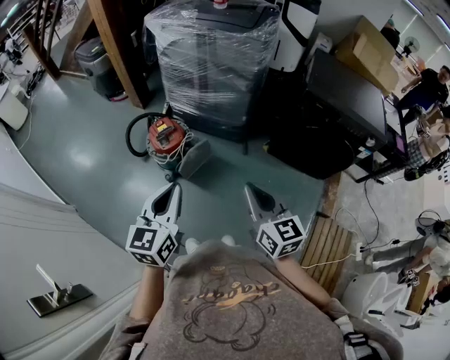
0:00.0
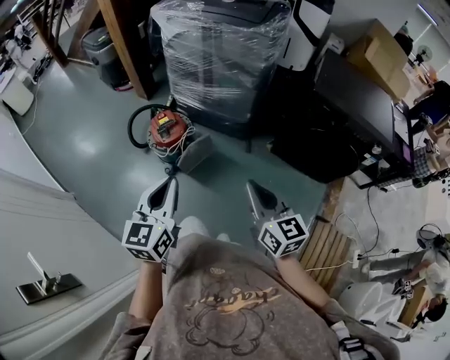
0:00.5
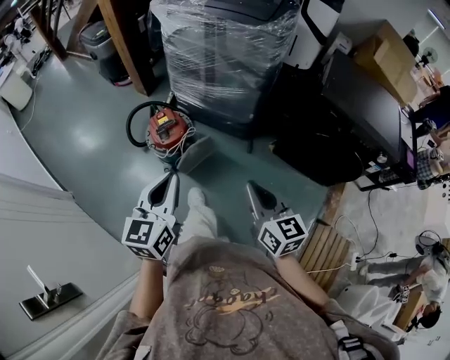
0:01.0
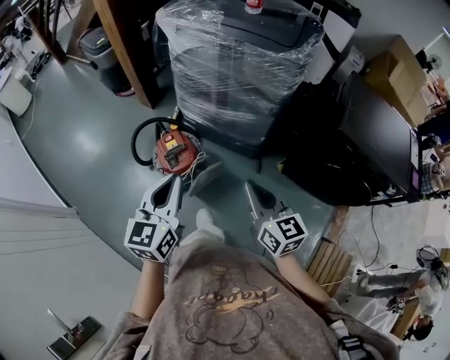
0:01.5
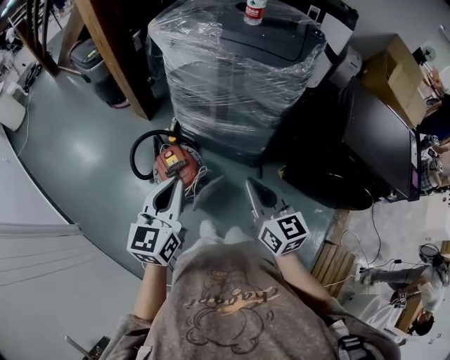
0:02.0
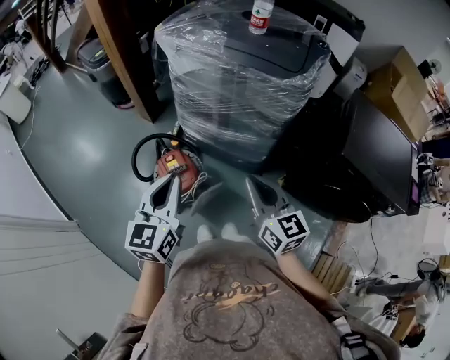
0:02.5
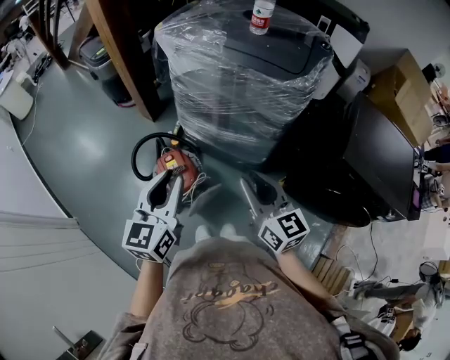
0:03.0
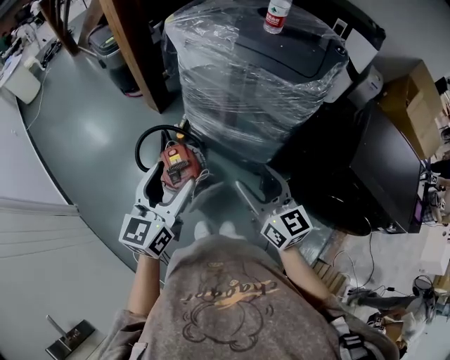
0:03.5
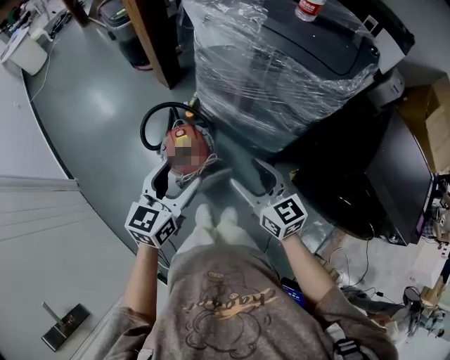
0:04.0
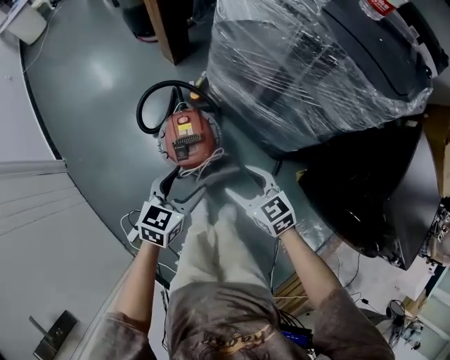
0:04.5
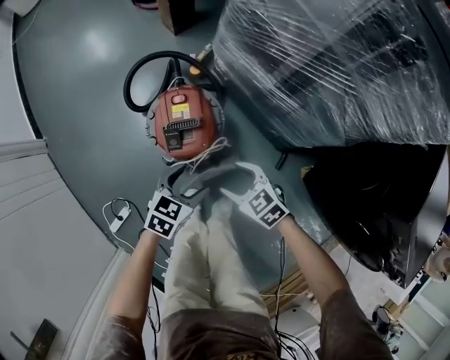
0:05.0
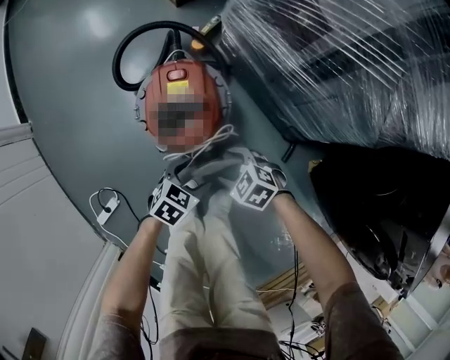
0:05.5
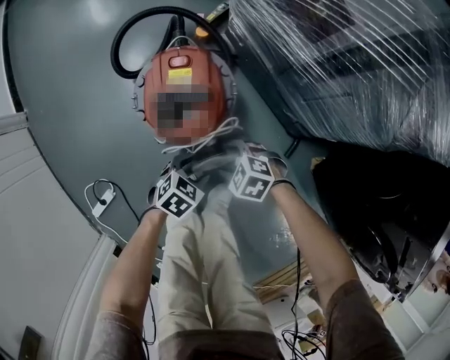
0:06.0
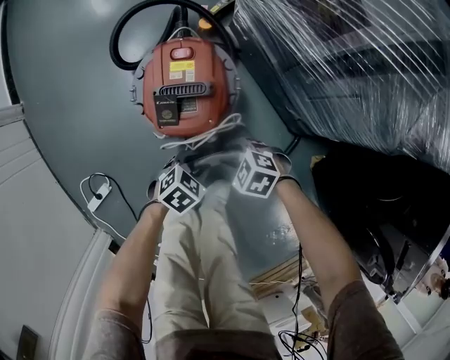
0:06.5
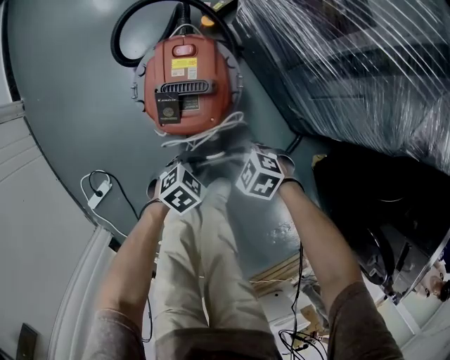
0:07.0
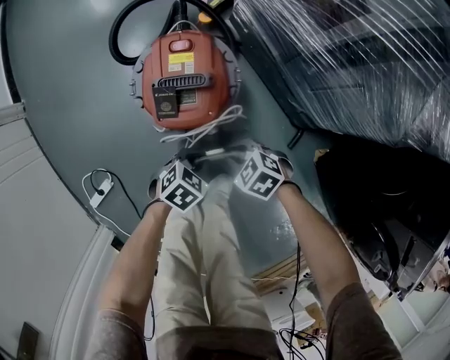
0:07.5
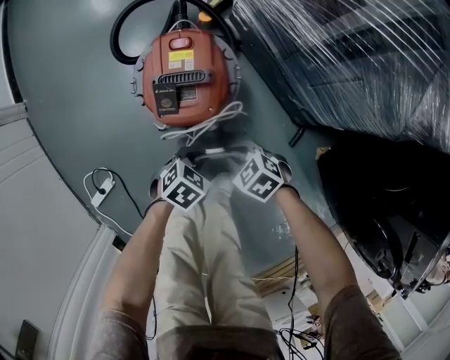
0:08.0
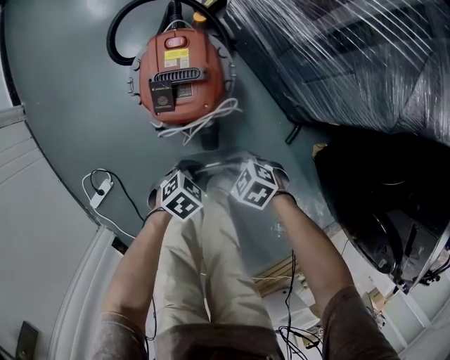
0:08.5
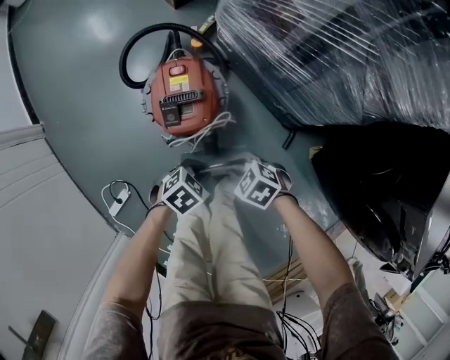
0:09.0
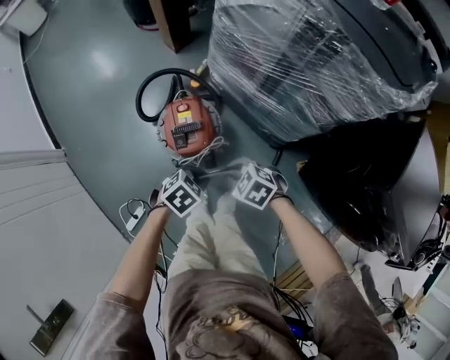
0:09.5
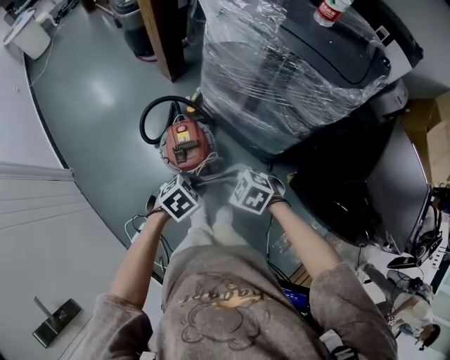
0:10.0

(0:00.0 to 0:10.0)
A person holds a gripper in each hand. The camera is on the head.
0:00.0 - 0:02.0: Both grippers move forward, about 30 cm.
0:02.0 - 0:04.0: The right gripper goes about 10 cm forward and downward, changes its angle by about 20 degrees, and opens, while the left gripper is displaced downward by some 5 cm, and opens up.
0:04.0 - 0:06.0: The two grippers go roughly 60 cm downward. The left gripper angles its fingers downward, by roughly 40 degrees; the right gripper tips its fingers downward by roughly 50 degrees.
0:06.0 - 0:08.0: The right gripper closes its fingers. Meanwhile the left gripper closes.
0:08.0 - 0:10.0: Both grippers move upward, roughly 40 cm.

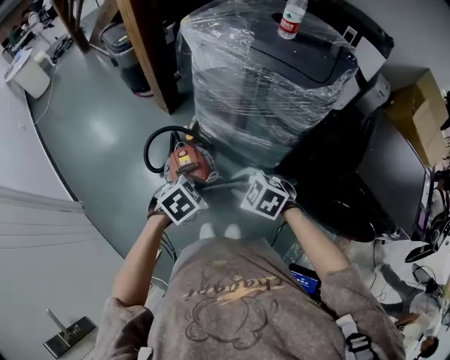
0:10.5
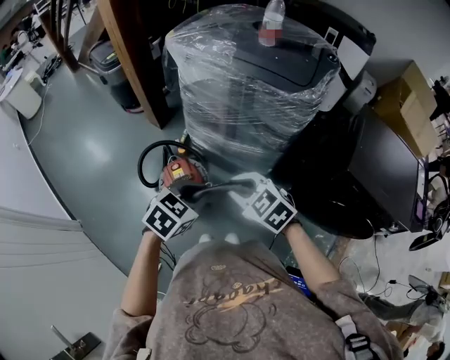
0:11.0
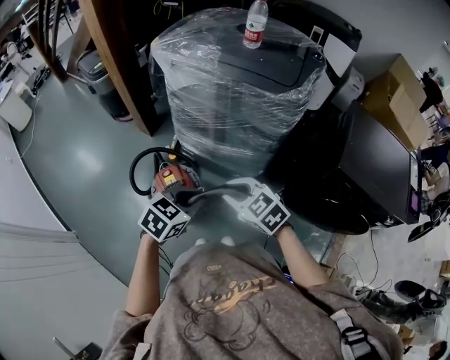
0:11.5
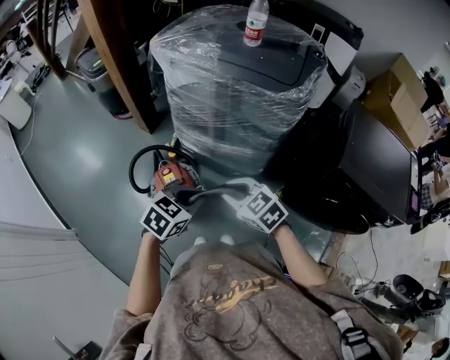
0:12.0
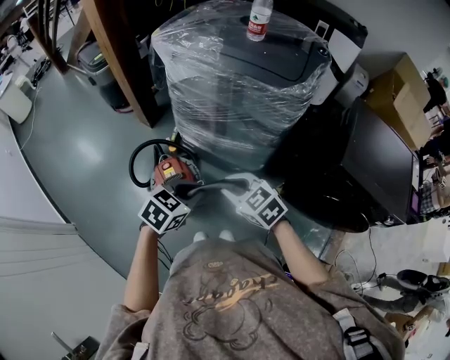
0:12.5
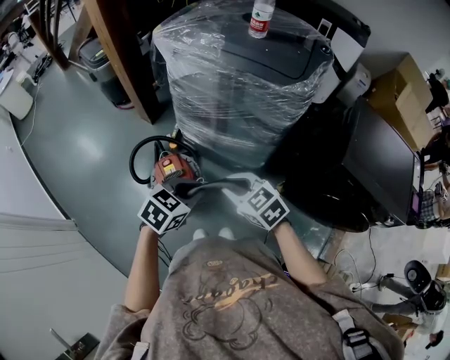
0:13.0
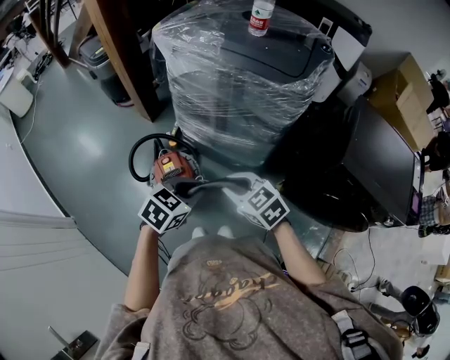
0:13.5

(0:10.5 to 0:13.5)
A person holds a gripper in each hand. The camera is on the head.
0:10.5 - 0:12.0: The right gripper turns by approximately 30 degrees.
0:12.0 - 0:13.5: Both grippers stay about where they are.

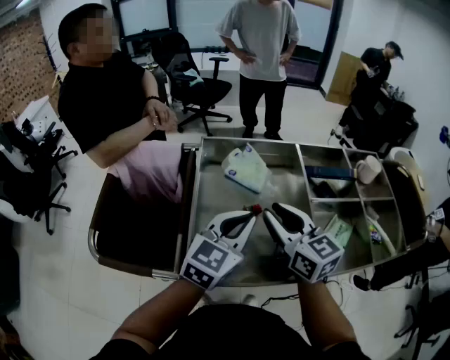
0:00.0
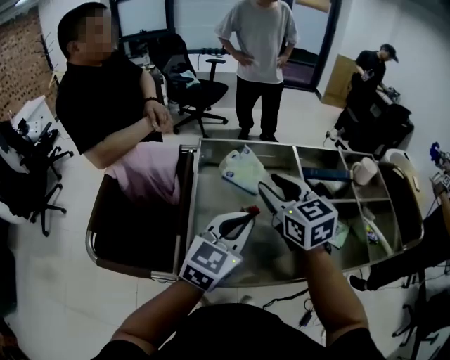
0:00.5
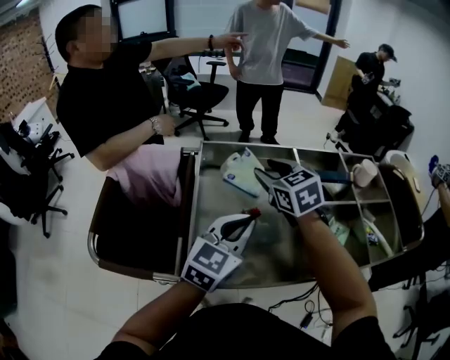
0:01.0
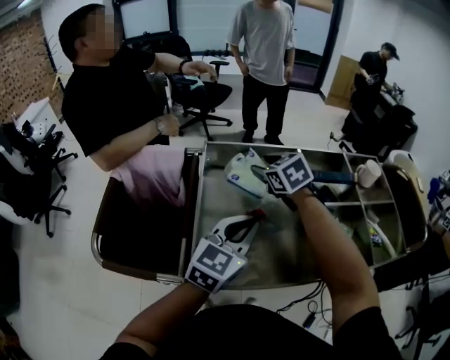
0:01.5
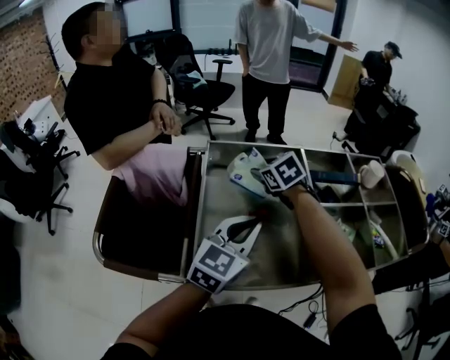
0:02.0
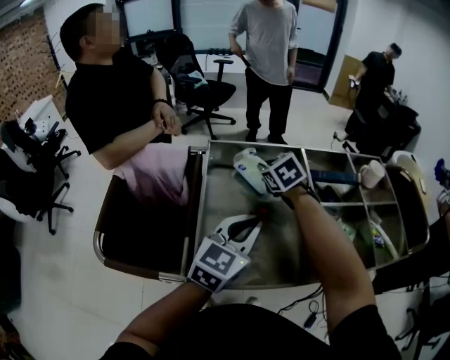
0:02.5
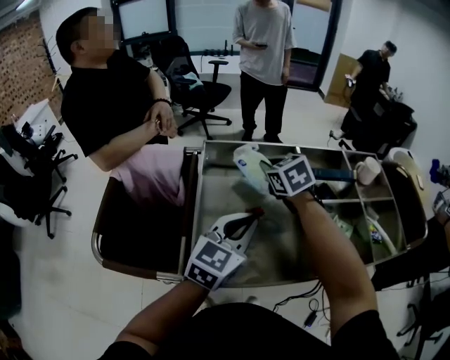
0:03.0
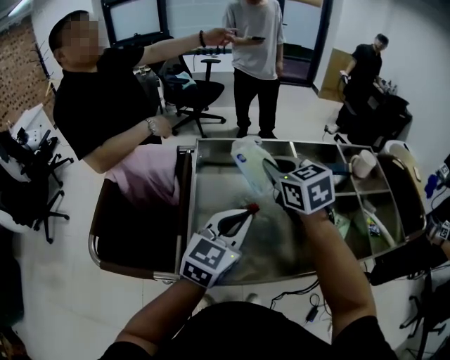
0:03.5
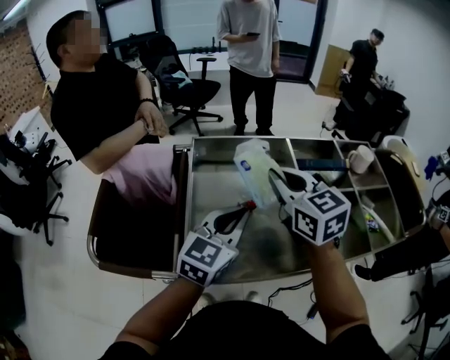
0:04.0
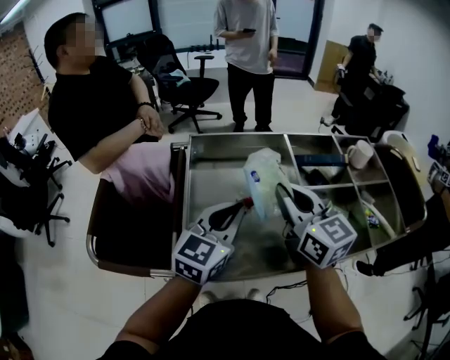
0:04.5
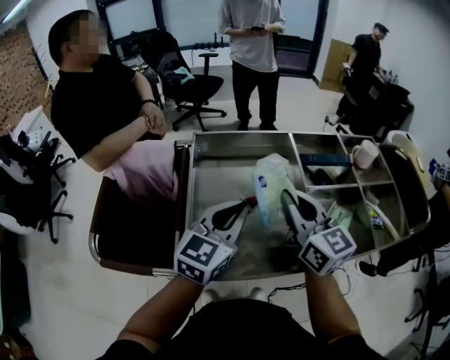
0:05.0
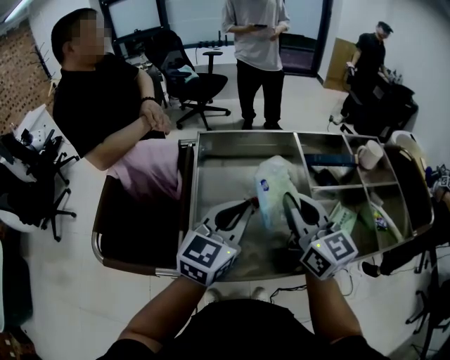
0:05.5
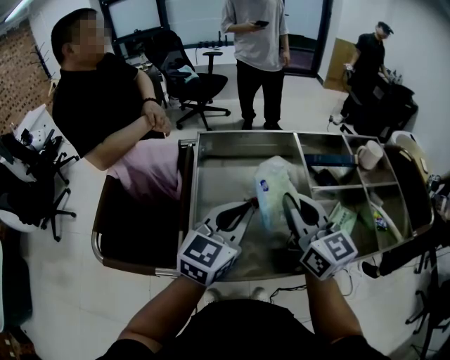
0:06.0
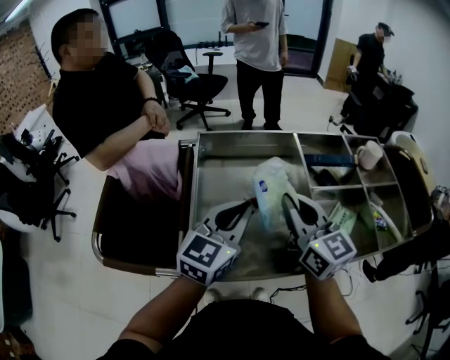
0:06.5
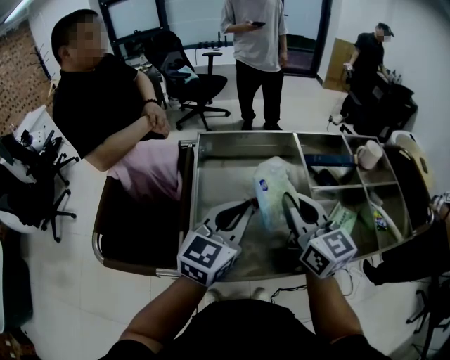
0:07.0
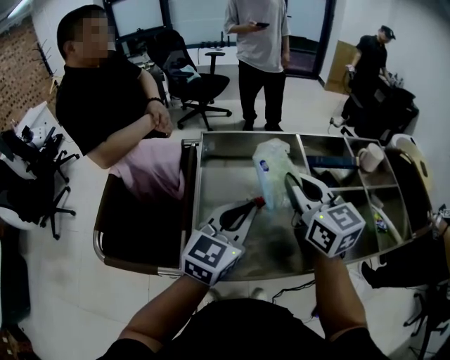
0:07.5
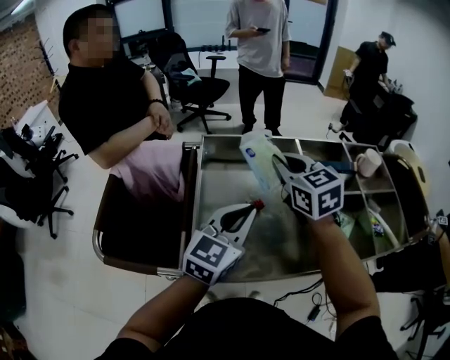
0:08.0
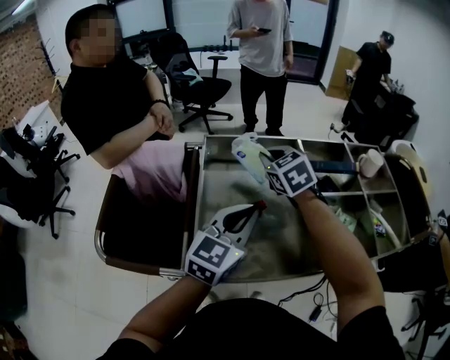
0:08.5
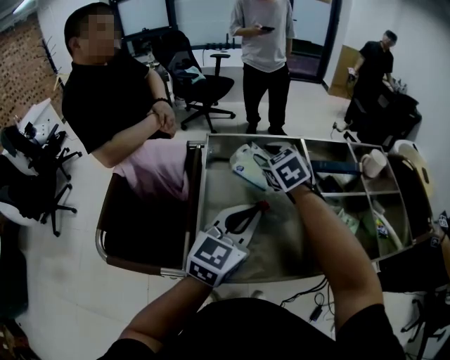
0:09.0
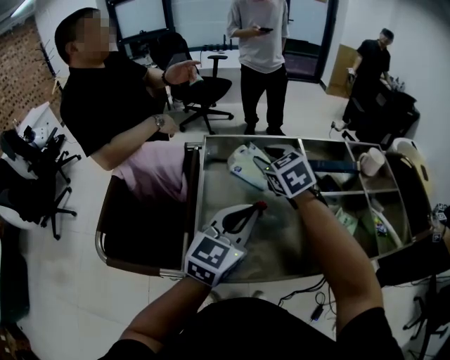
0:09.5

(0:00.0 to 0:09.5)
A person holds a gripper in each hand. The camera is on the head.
0:00.0 - 0:02.0: The right gripper goes approximately 20 cm forward, tilts its fingers about 30 degrees downward, and opens.
0:02.0 - 0:04.0: The right gripper goes some 20 cm backward, upward and to the right, rotates about 30 degrees, and closes its fingers.
0:04.0 - 0:05.5: The right gripper heads backward, covering approximately 5 cm.
0:05.5 - 0:07.5: The grippers move only a little.
0:07.5 - 0:09.5: The right gripper shifts some 15 cm forward, to the left and downward, turns by about 30 degrees, and opens up.

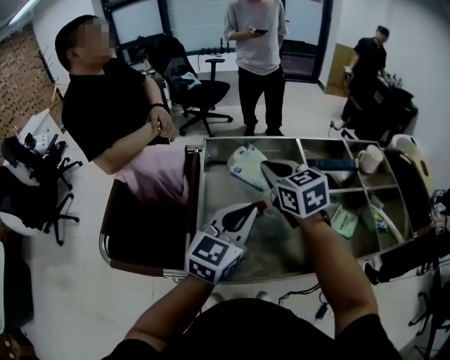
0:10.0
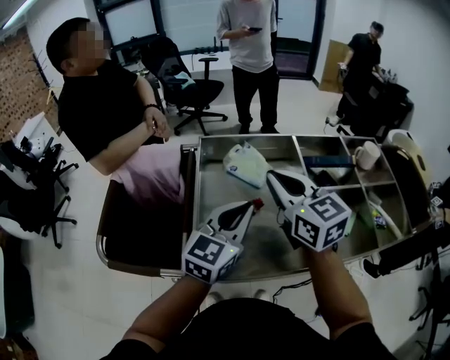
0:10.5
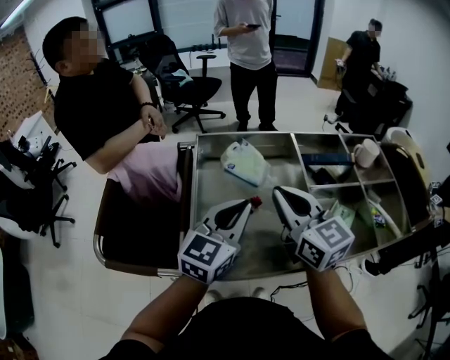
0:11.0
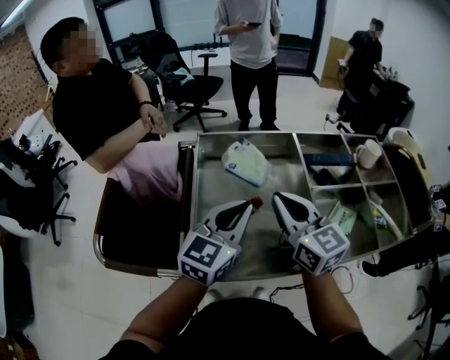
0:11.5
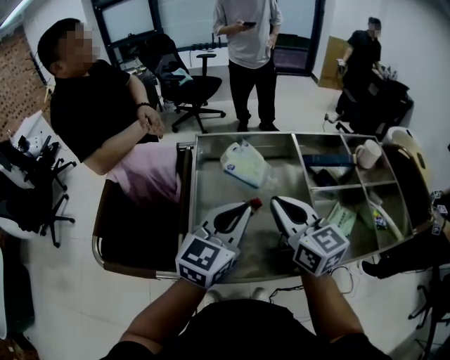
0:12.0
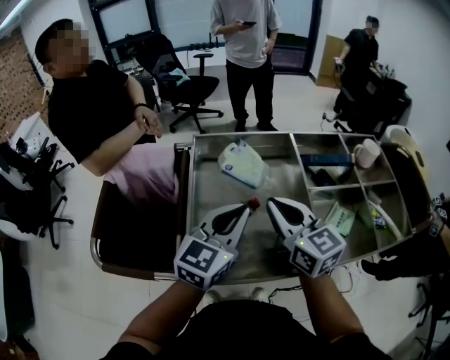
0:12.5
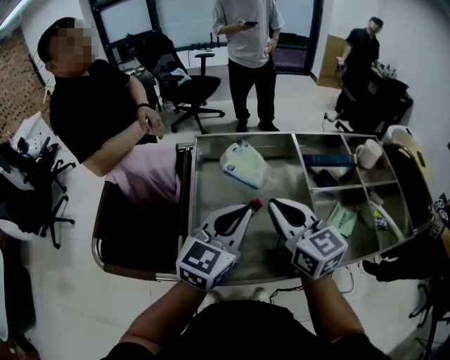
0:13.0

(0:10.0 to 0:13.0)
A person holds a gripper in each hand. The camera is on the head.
0:10.0 - 0:11.5: The right gripper heads backward, covering approximately 10 cm.
0:11.5 - 0:13.0: Neither gripper changes place.

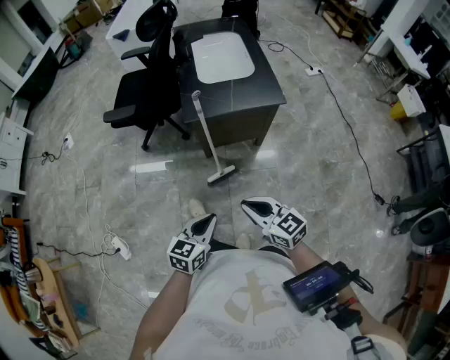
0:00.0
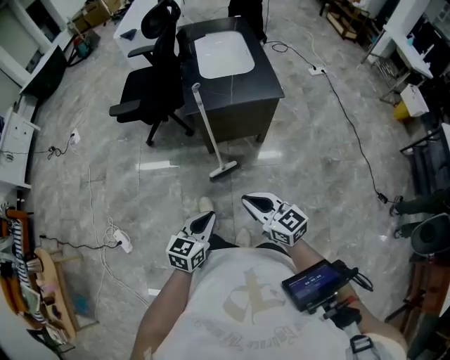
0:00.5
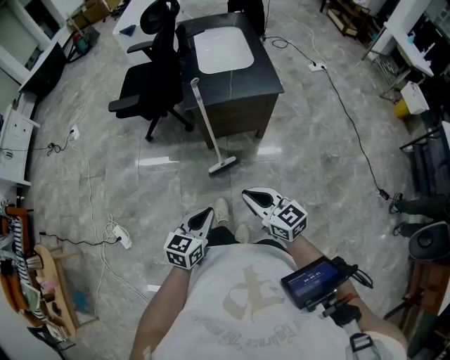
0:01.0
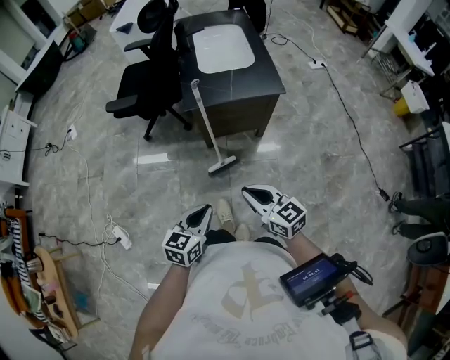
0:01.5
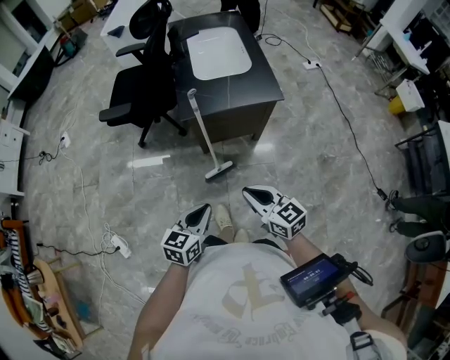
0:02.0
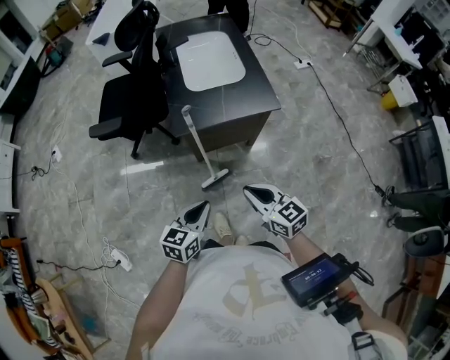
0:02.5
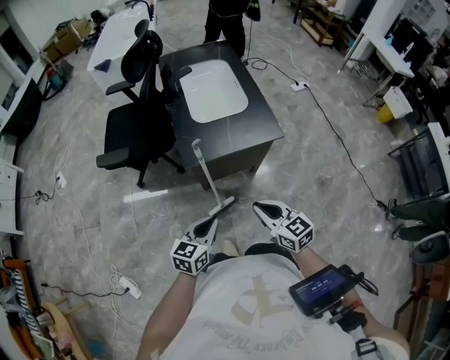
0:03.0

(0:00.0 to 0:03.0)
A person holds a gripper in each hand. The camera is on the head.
0:00.0 - 0:01.5: The grippers stay close to where they were, moving slightly.
0:01.5 - 0:03.0: The two grippers go some 15 cm forward.
